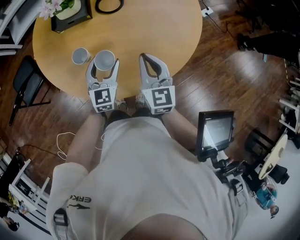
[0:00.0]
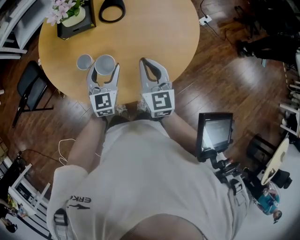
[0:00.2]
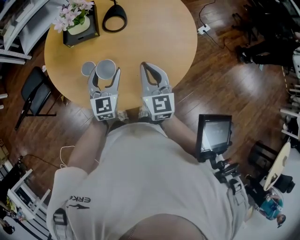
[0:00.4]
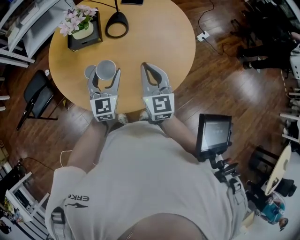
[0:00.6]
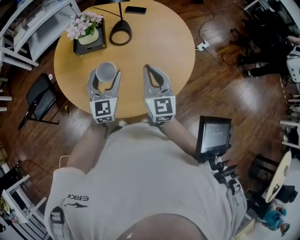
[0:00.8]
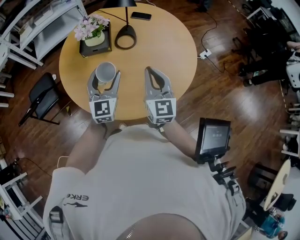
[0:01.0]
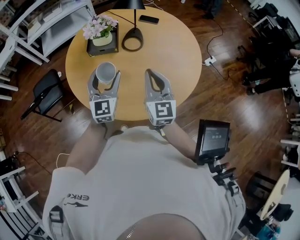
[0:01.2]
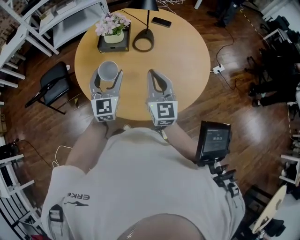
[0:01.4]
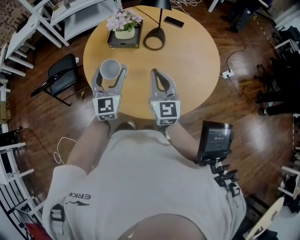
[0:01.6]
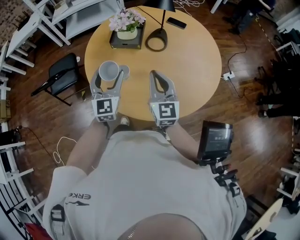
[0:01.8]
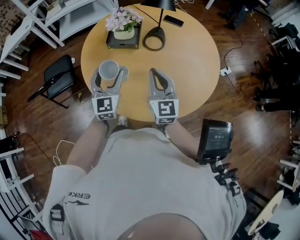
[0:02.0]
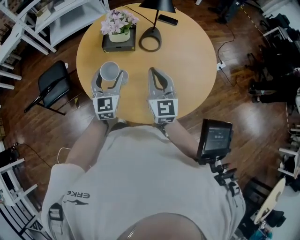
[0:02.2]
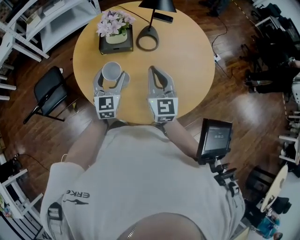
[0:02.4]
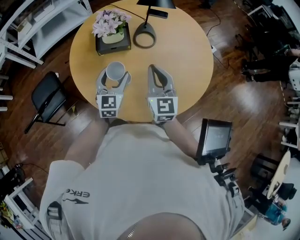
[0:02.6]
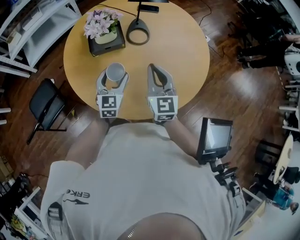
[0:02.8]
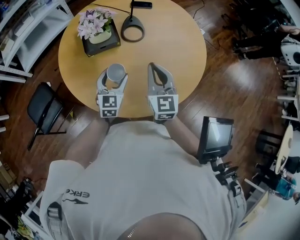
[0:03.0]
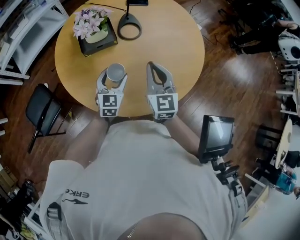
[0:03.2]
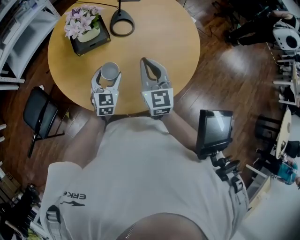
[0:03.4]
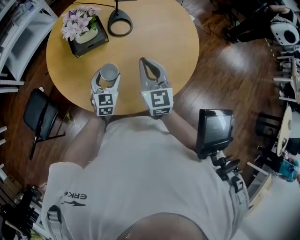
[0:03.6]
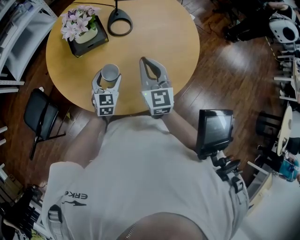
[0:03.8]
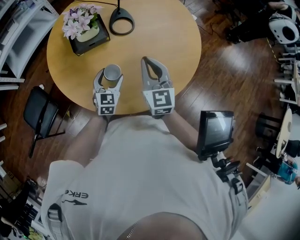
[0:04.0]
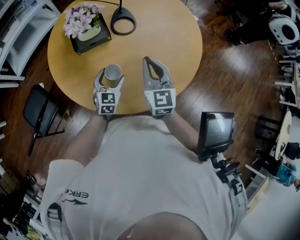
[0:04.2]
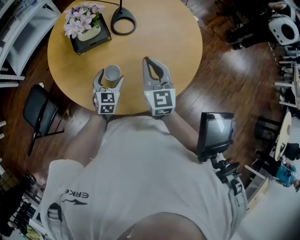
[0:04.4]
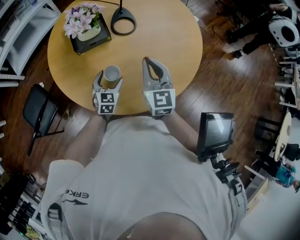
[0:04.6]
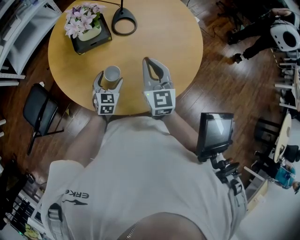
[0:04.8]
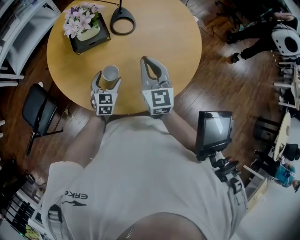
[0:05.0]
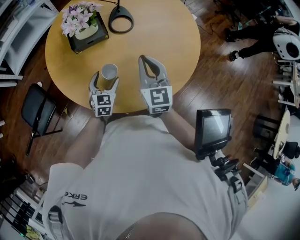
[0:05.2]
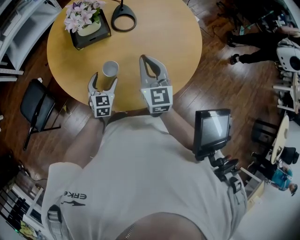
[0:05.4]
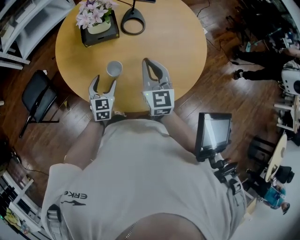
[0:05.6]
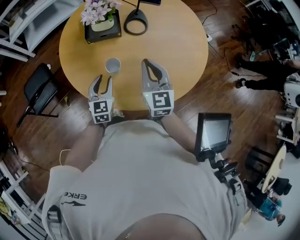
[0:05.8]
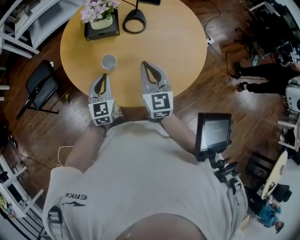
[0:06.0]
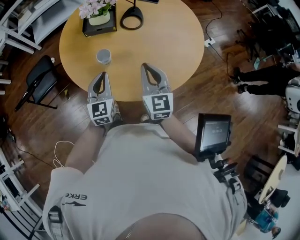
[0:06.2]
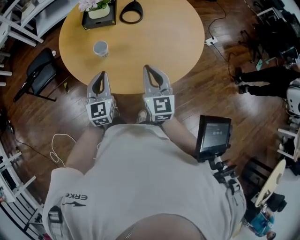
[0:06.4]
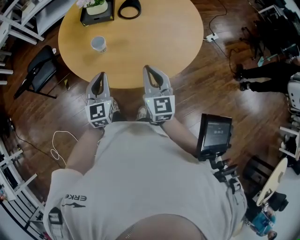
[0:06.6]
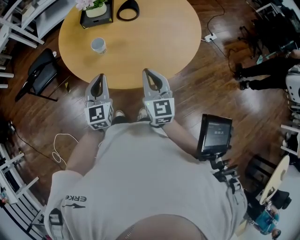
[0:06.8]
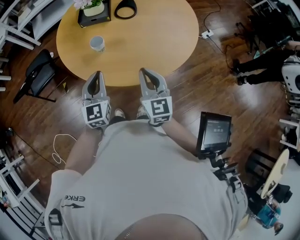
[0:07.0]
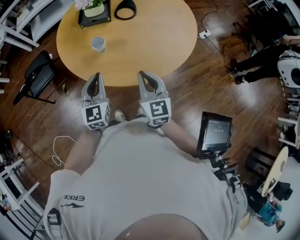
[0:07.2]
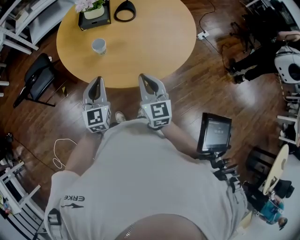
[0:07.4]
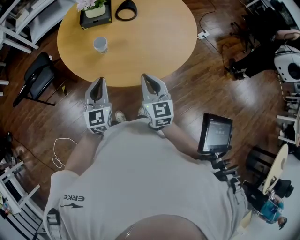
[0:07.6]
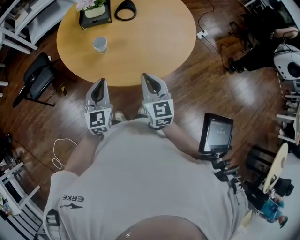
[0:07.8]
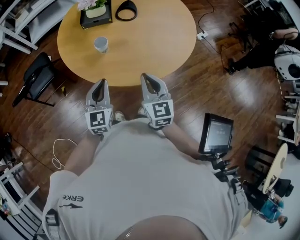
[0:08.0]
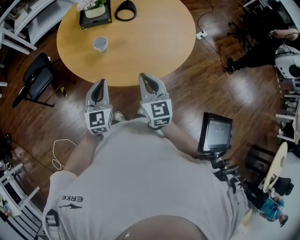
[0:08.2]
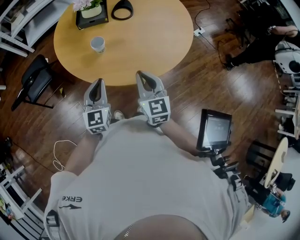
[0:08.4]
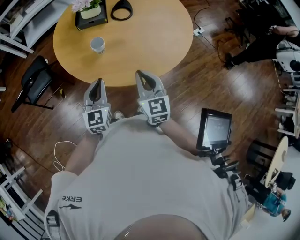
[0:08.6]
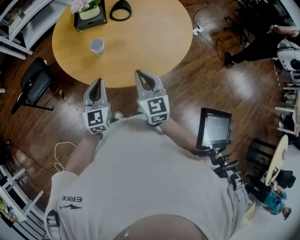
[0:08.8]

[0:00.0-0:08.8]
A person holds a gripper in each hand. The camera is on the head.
0.0 to 1.4 s: The left gripper moves upward and to the left, about 20 cm, and rotates approximately 20 degrees; the right gripper heads upward, covering approximately 10 cm.
1.4 to 3.0 s: The right gripper shifts by roughly 10 cm, and rotates some 20 degrees. The left gripper goes approximately 15 cm downward, and changes its angle by about 30 degrees.
3.0 to 4.4 s: The left gripper shifts about 10 cm downward.
4.4 to 5.8 s: The left gripper goes about 10 cm backward and upward, changes its angle by some 20 degrees, and closes its fingers.
5.8 to 7.4 s: The left gripper moves backward and upward, about 20 cm, and closes, while the right gripper heads backward, covering roughly 20 cm.
7.4 to 8.8 s: The grippers stay close to where they were, moving slightly.

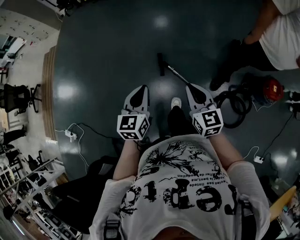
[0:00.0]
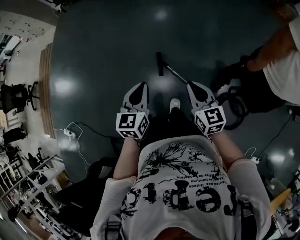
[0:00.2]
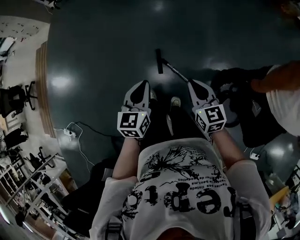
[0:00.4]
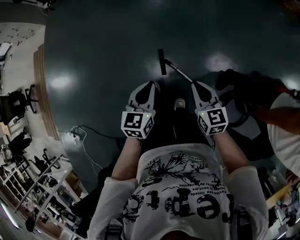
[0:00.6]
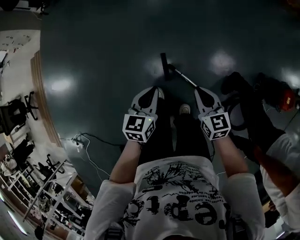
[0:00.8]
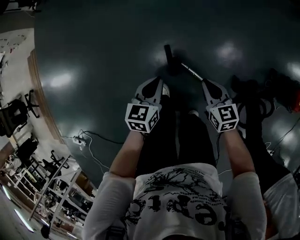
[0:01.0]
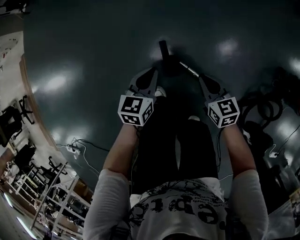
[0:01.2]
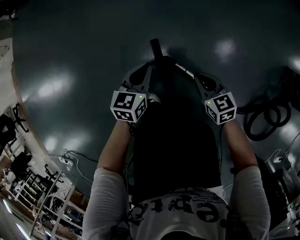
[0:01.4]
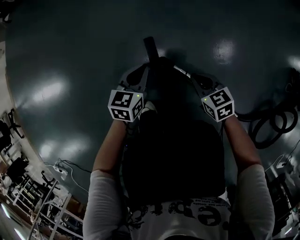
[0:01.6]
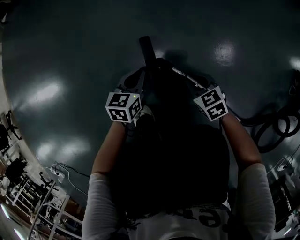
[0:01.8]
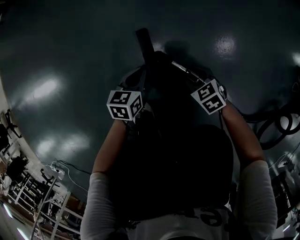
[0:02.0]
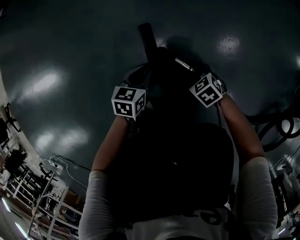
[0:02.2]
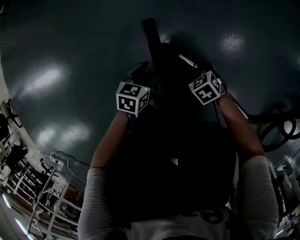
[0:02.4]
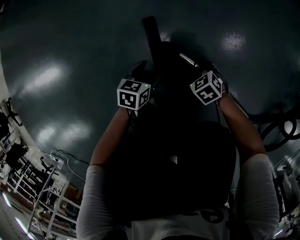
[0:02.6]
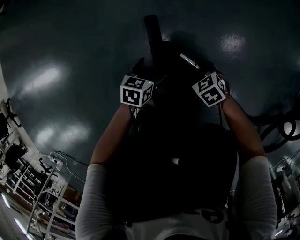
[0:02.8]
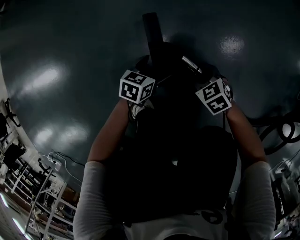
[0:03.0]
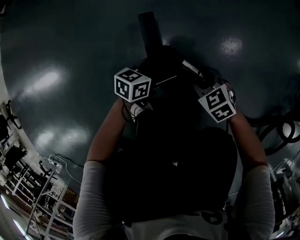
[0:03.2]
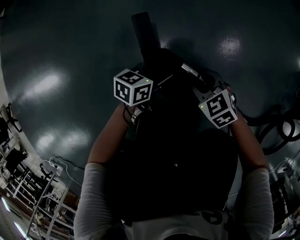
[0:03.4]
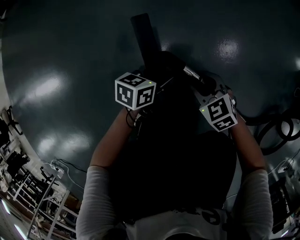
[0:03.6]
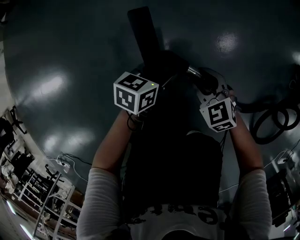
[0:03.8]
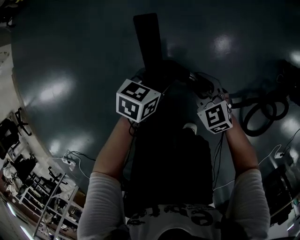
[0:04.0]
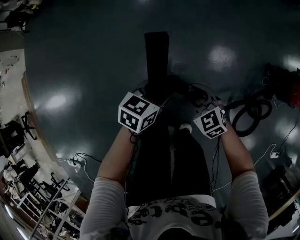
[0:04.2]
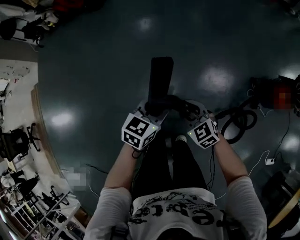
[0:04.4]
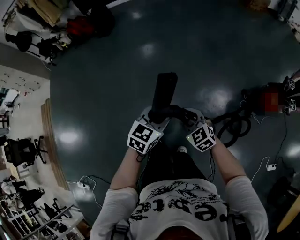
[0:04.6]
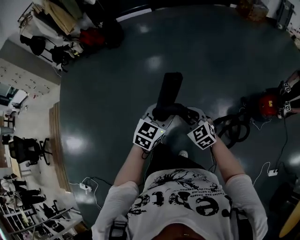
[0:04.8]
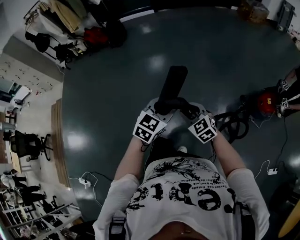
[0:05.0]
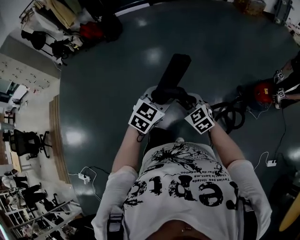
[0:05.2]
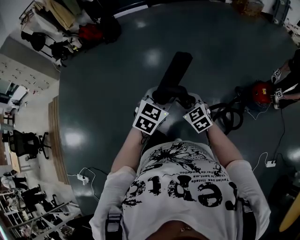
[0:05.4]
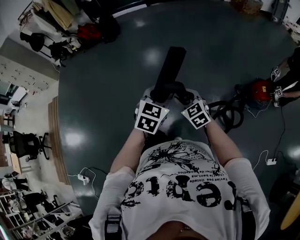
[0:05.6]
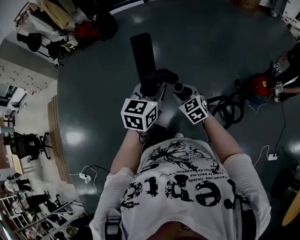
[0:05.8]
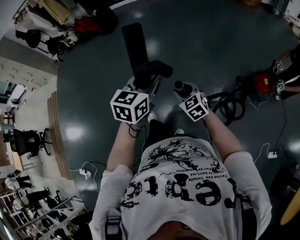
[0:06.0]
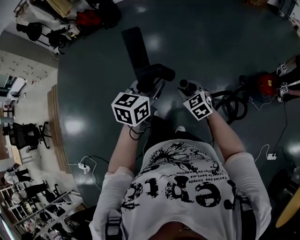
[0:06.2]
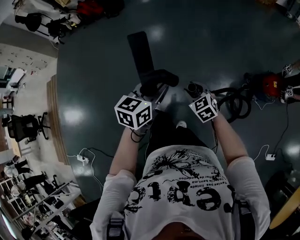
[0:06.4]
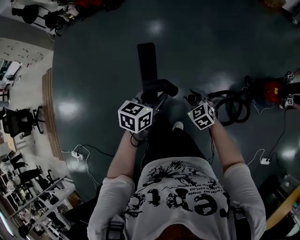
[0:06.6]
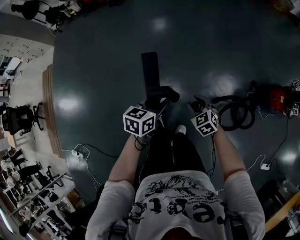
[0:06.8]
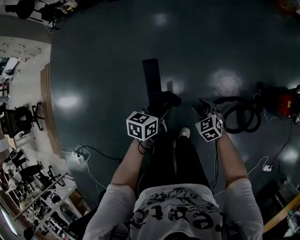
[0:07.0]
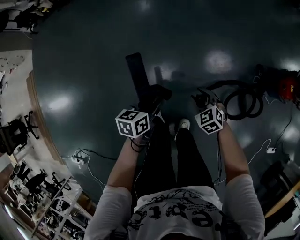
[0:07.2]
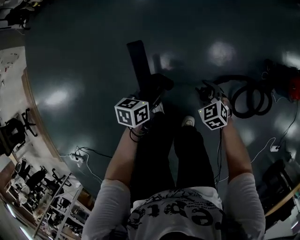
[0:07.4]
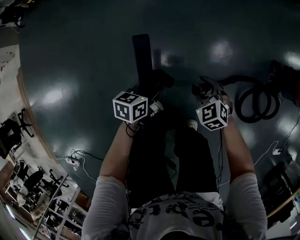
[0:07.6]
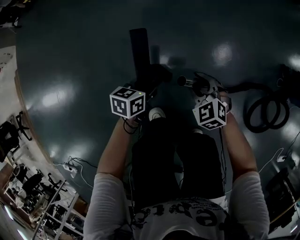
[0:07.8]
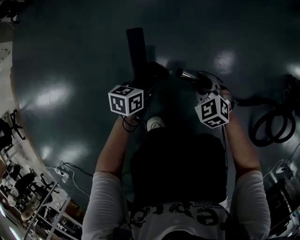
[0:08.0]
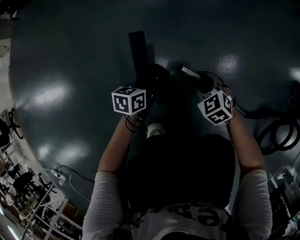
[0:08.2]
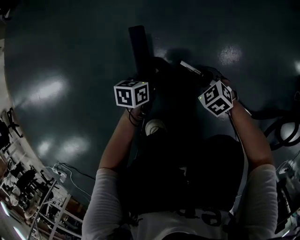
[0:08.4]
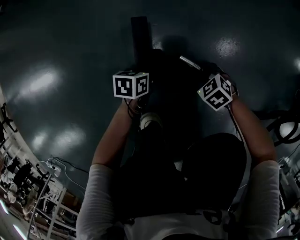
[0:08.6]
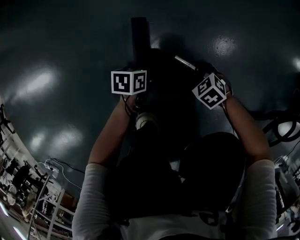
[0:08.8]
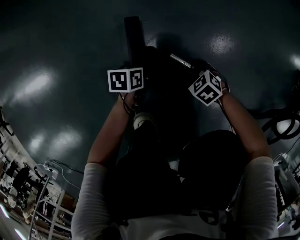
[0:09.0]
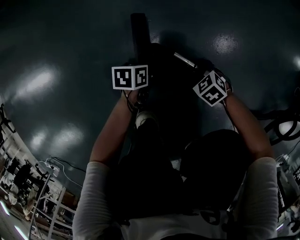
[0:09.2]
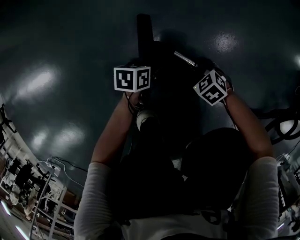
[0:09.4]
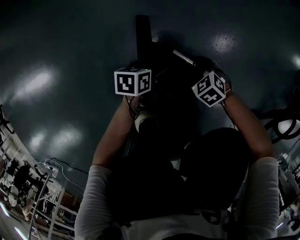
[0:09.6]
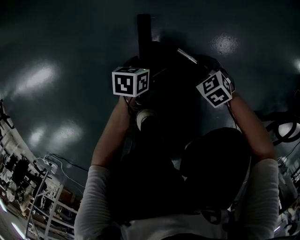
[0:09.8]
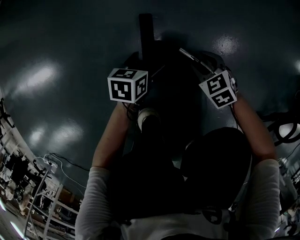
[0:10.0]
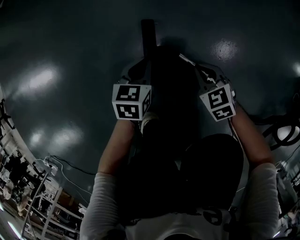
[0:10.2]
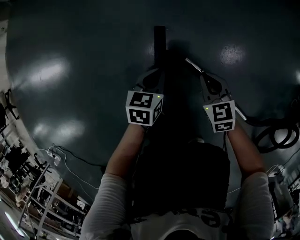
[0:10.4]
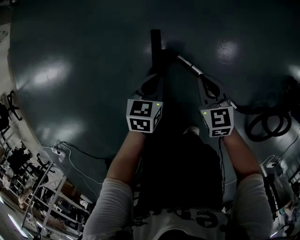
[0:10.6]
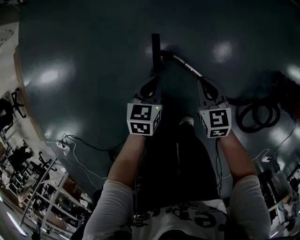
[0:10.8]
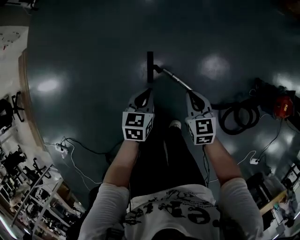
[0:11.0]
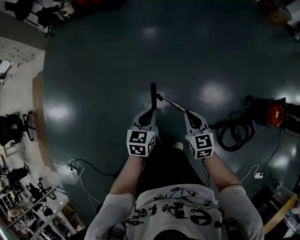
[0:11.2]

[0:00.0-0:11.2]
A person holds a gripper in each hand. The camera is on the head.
0.0 to 1.6 s: The right gripper moves downward, some 80 cm, and swivels approximately 30 degrees, while the left gripper is displaced downward and forward by roughly 80 cm, and rotates approximately 30 degrees.
1.6 to 3.2 s: The right gripper heads downward, covering some 10 cm, turns by roughly 20 degrees, and opens up; the left gripper shifts about 15 cm downward and to the right, rotates some 30 degrees, and opens its fingers.
3.2 to 4.8 s: The two grippers go roughly 90 cm upward. The right gripper rotates approximately 30 degrees. Meanwhile the left gripper rotates around the line of its fingers by about 40 degrees, clockwise from behind, and closes.
4.8 to 6.4 s: The right gripper is displaced downward by some 5 cm, while the left gripper moves backward, some 5 cm, travels to the right and back again, roughly 5 cm each way, and swivels about 20 degrees.
6.4 to 8.0 s: Both grippers travel together downward, roughly 70 cm. The left gripper changes its angle by about 30 degrees.
8.0 to 9.6 s: The grippers both shift downward by roughly 25 cm. The left gripper opens, while the right gripper swivels some 20 degrees.
9.6 to 11.2 s: Both grippers travel together upward, some 80 cm. The left gripper turns by about 40 degrees, and closes. The right gripper tilts its fingers roughly 40 degrees upward, and closes up.

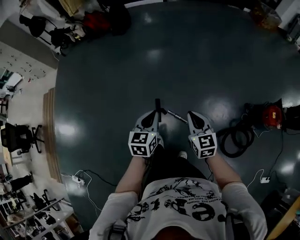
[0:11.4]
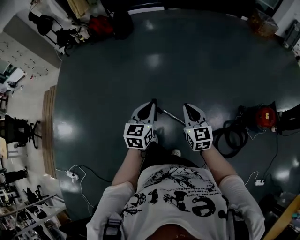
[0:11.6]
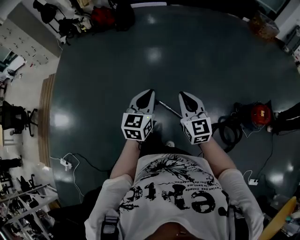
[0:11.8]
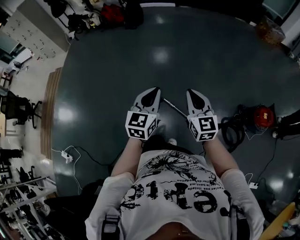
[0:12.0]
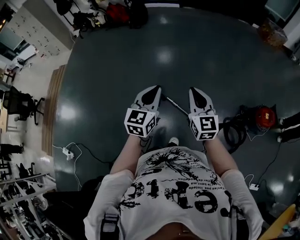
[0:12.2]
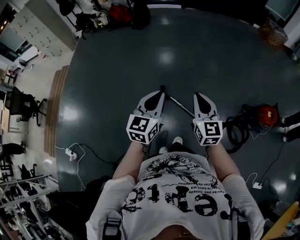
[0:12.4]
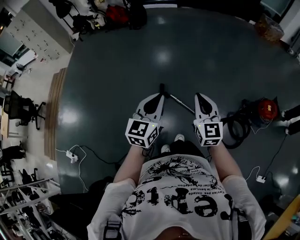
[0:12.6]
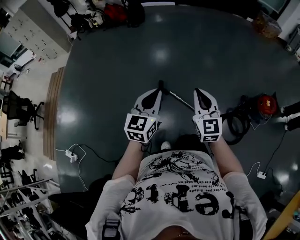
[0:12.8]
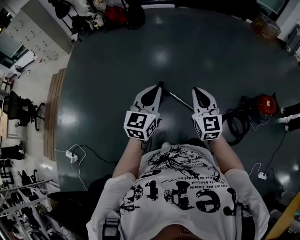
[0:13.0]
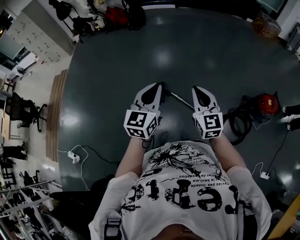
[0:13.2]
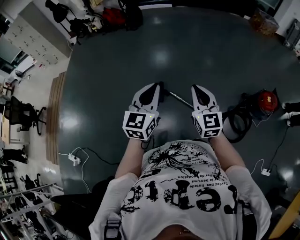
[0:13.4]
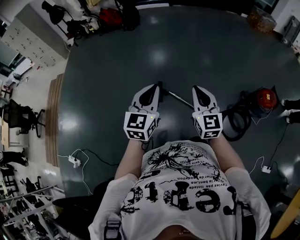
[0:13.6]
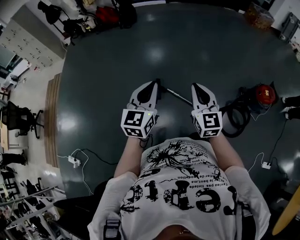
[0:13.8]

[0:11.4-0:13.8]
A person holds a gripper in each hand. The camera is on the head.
11.4 to 12.6 s: Both grippers move backward and upward, approximately 30 cm. The left gripper swivels about 20 degrees.
12.6 to 13.8 s: The grippers make only small movements.

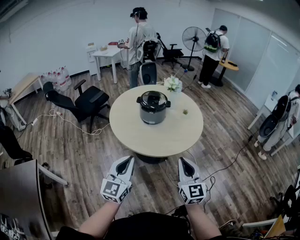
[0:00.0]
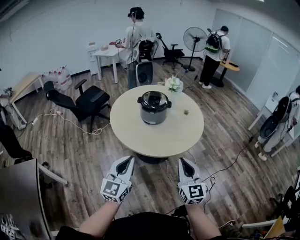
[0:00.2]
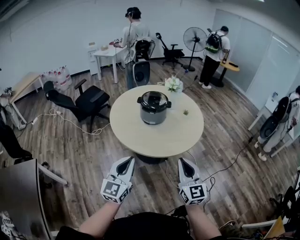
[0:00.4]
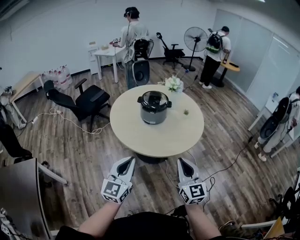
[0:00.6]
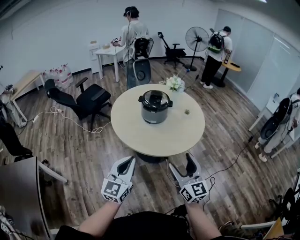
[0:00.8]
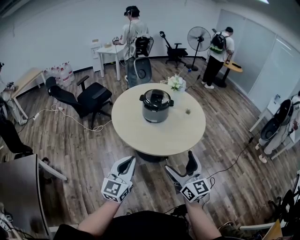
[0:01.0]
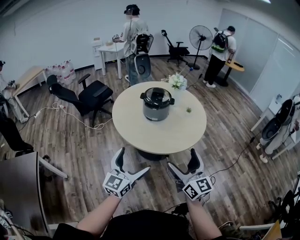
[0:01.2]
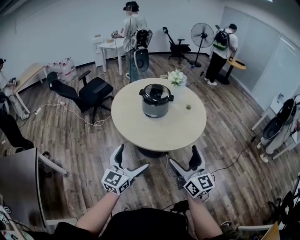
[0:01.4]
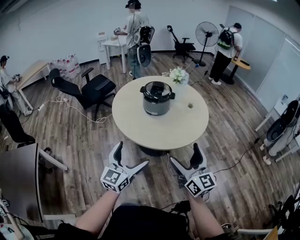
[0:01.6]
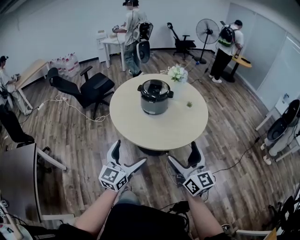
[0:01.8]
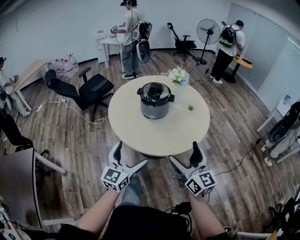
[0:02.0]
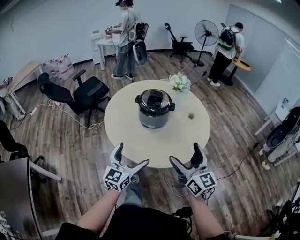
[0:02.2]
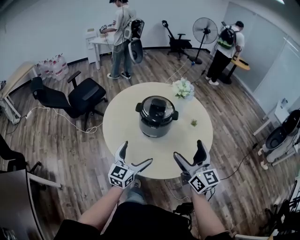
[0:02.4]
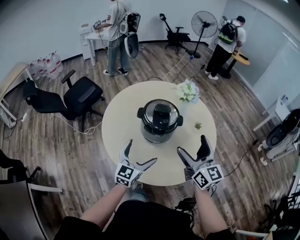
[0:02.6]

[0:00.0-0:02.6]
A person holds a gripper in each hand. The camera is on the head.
0.0 to 1.2 s: The right gripper swivels roughly 20 degrees, and opens its fingers. The left gripper opens.
1.2 to 2.6 s: The two grippers go about 40 cm forward.
